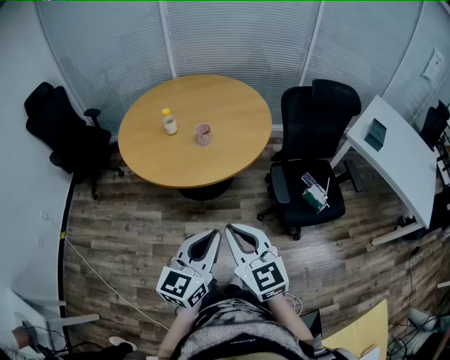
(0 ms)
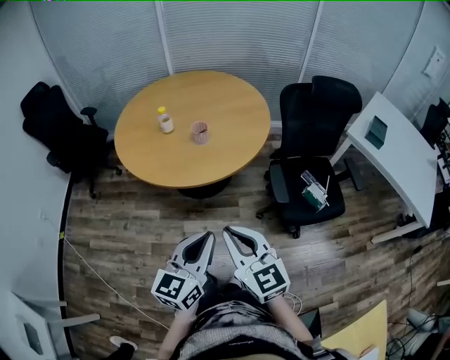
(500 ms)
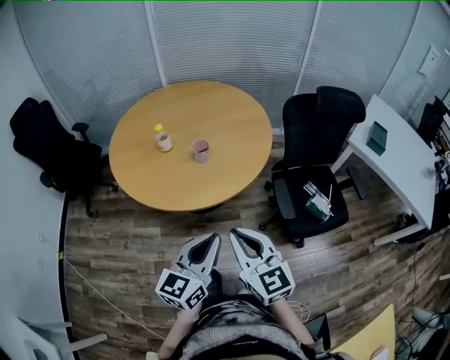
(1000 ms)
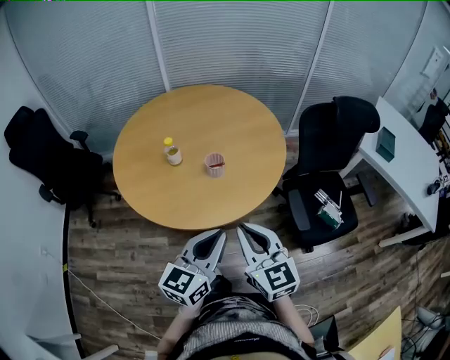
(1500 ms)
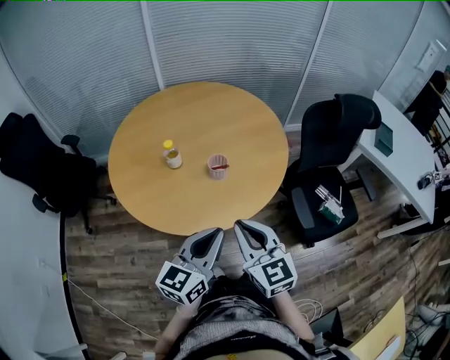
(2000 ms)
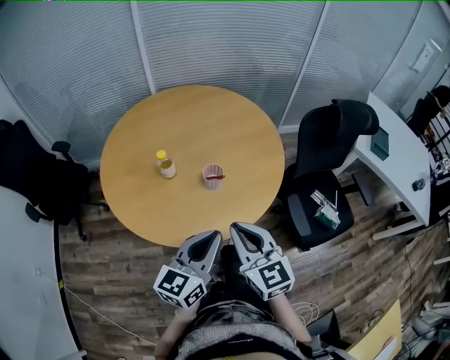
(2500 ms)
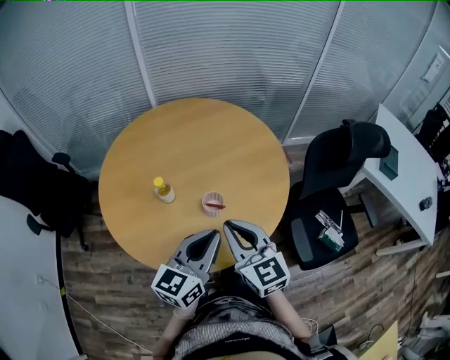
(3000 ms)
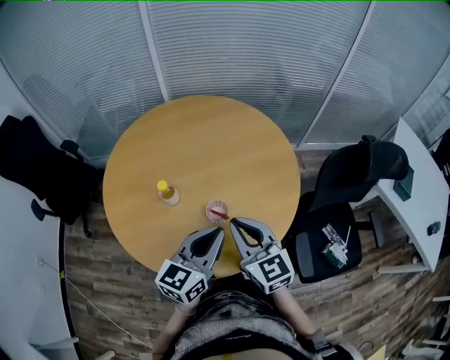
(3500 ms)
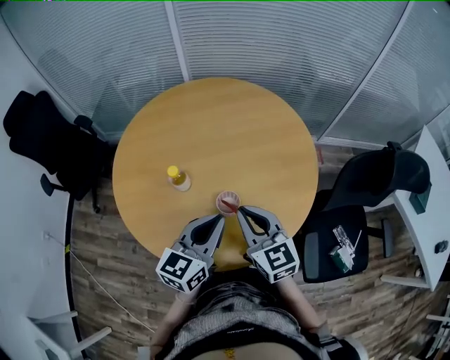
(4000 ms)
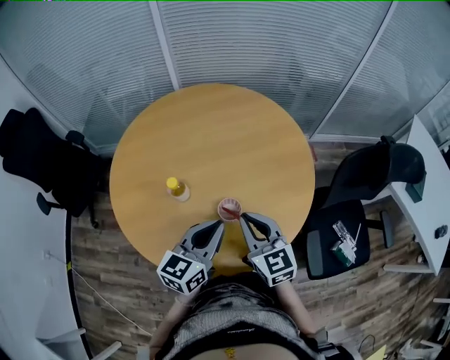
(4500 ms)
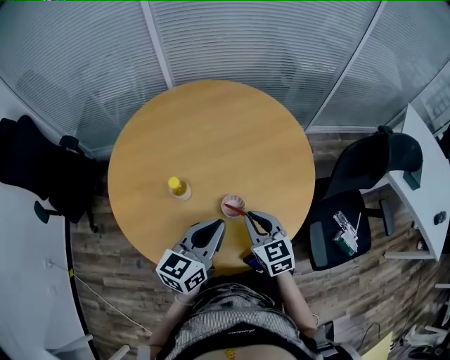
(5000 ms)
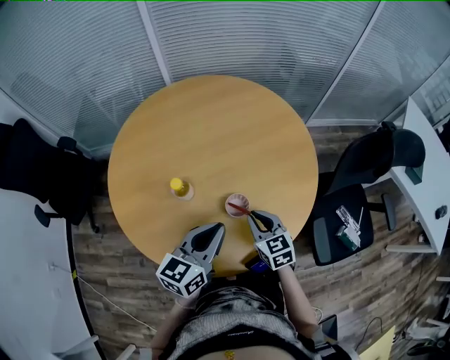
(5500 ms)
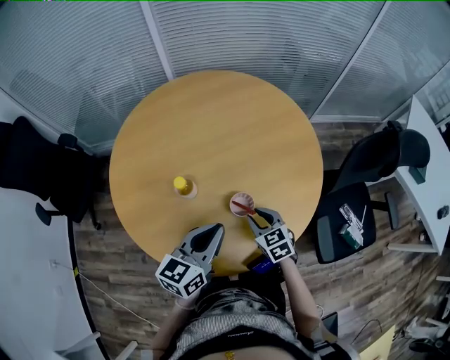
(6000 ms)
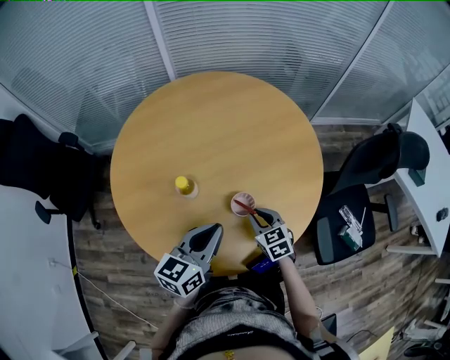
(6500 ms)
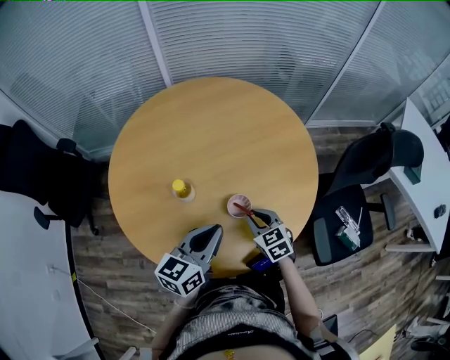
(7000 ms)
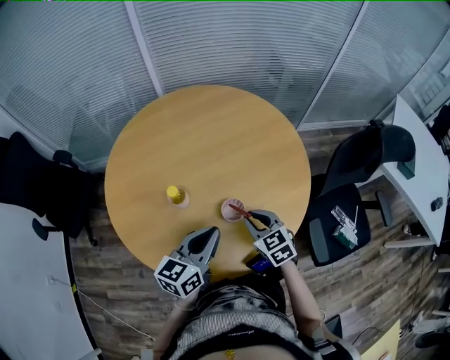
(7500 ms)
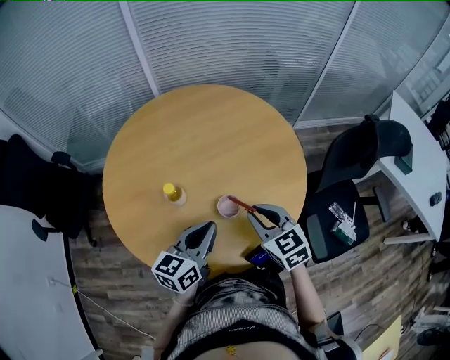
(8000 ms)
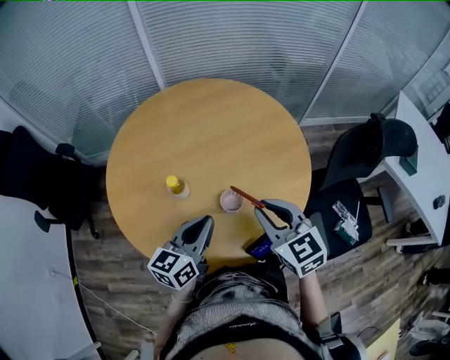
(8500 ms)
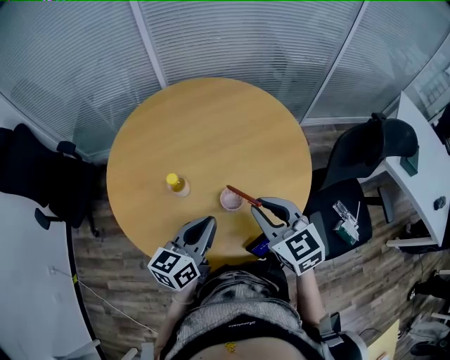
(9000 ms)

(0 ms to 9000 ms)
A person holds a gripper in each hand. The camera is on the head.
0 ms - 2000 ms: Both grippers move forward and to the left, about 30 cm.
2000 ms - 4500 ms: The grippers both shift forward by about 25 cm.
4500 ms - 7000 ms: The left gripper travels to the left by about 5 cm. Meanwhile the right gripper travels downward by approximately 15 cm, and turns by roughly 20 degrees.
7000 ms - 9000 ms: The right gripper goes roughly 20 cm upward.

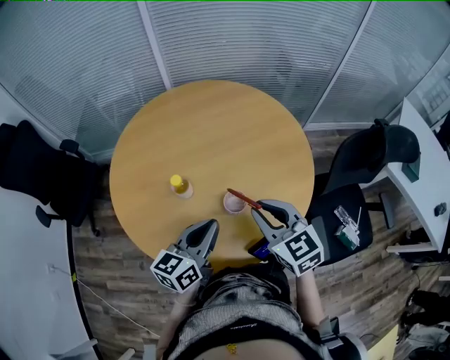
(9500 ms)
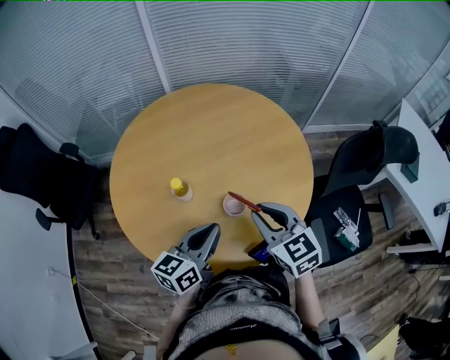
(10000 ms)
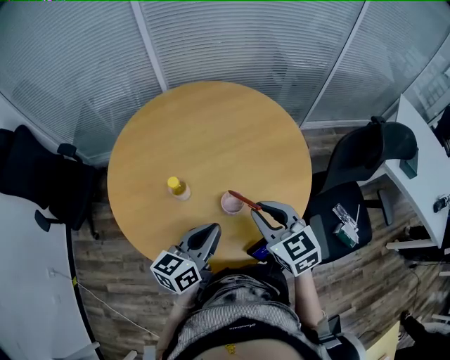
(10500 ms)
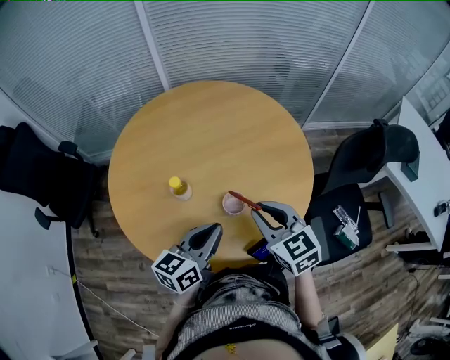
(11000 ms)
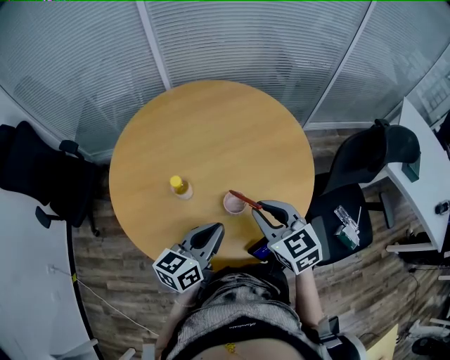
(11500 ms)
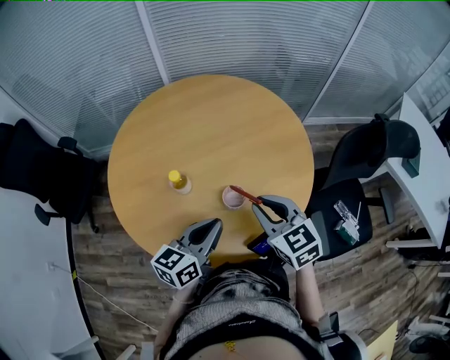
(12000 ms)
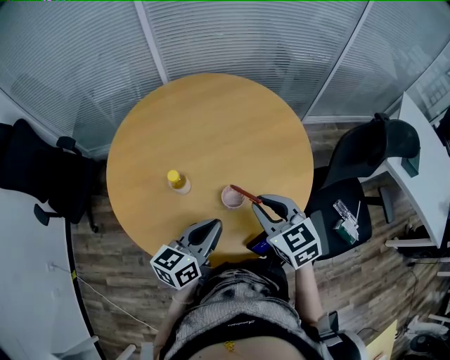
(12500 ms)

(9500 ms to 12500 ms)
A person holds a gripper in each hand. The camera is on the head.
9500 ms - 12500 ms: There are only small adjustments of the grippers.

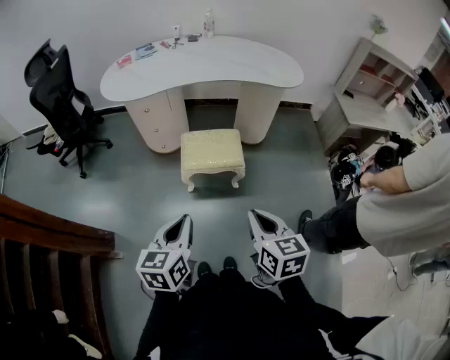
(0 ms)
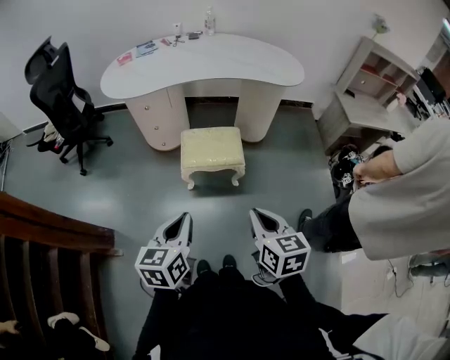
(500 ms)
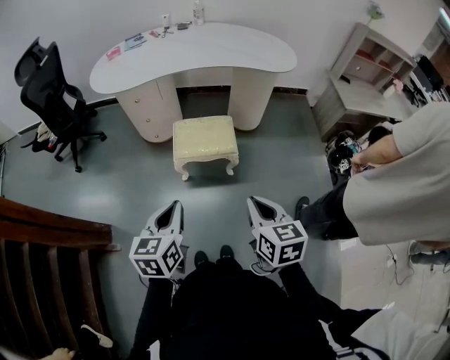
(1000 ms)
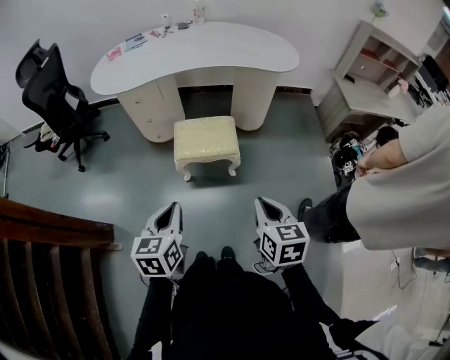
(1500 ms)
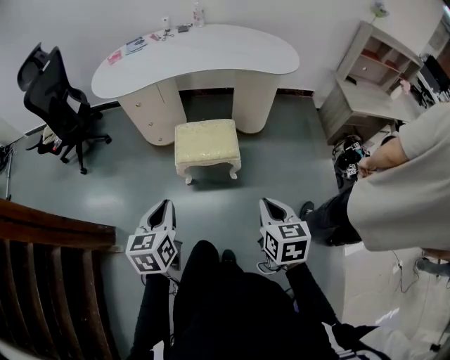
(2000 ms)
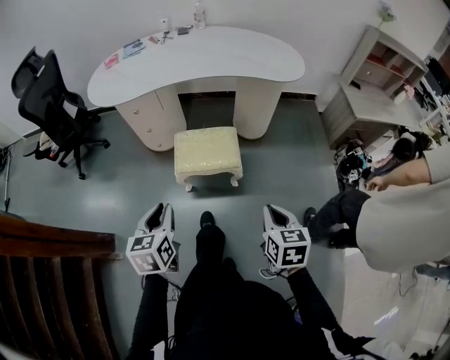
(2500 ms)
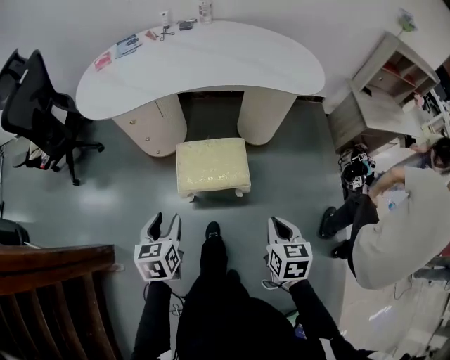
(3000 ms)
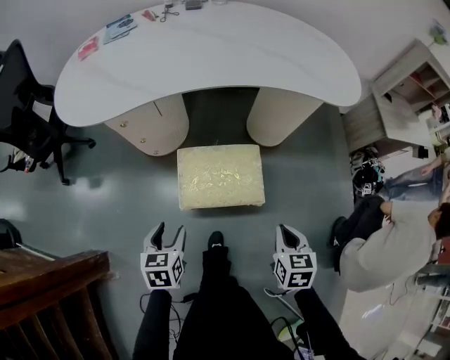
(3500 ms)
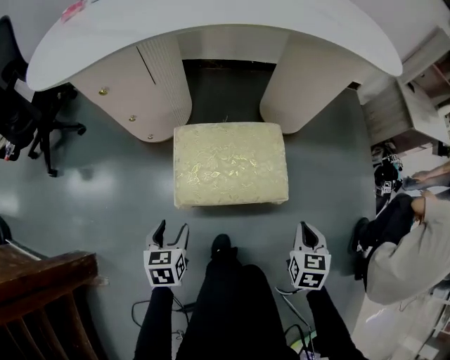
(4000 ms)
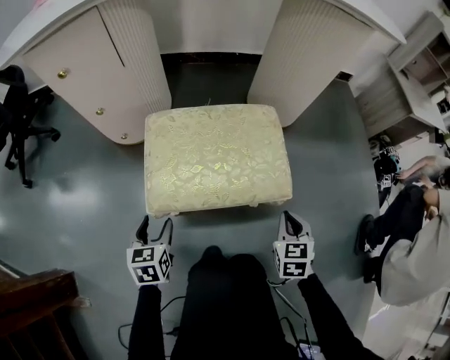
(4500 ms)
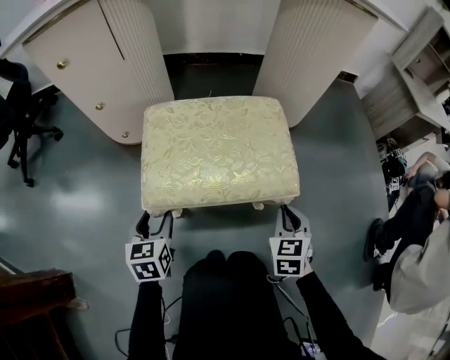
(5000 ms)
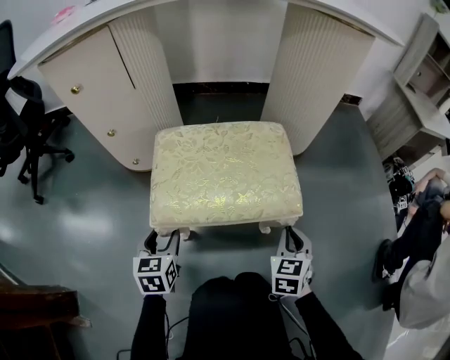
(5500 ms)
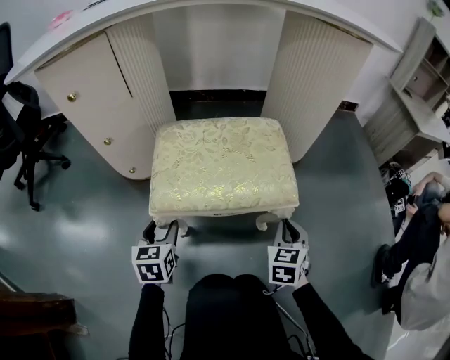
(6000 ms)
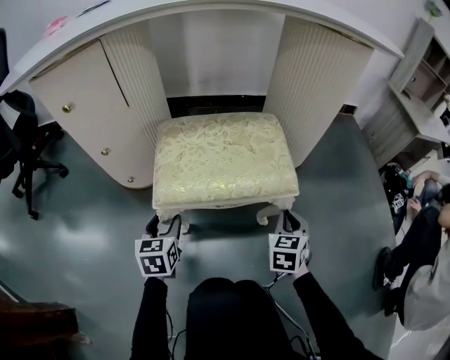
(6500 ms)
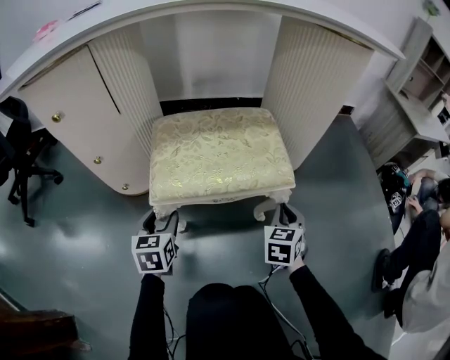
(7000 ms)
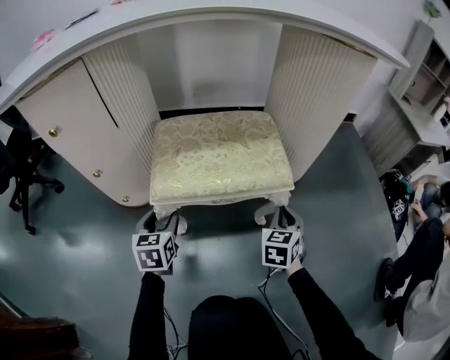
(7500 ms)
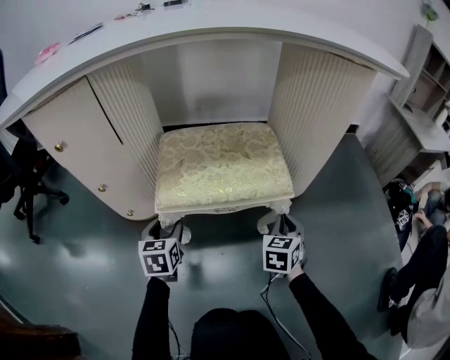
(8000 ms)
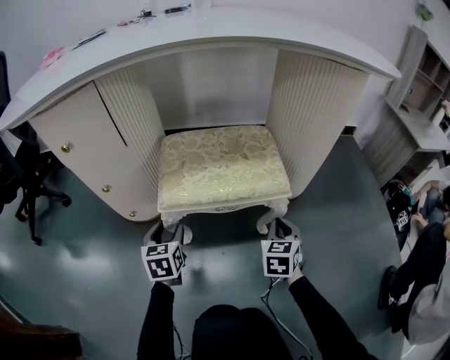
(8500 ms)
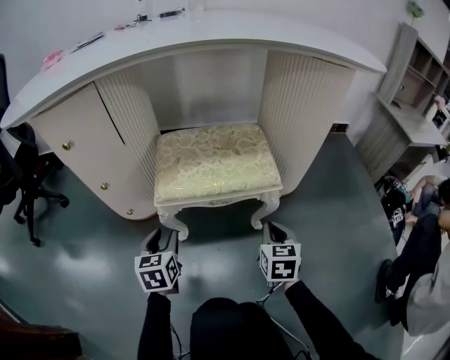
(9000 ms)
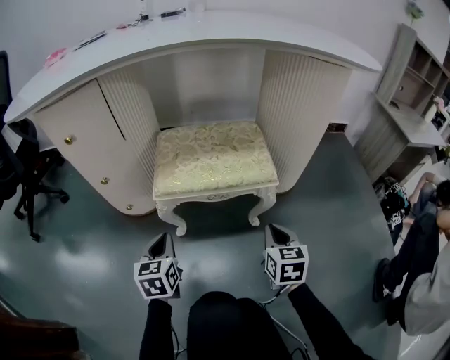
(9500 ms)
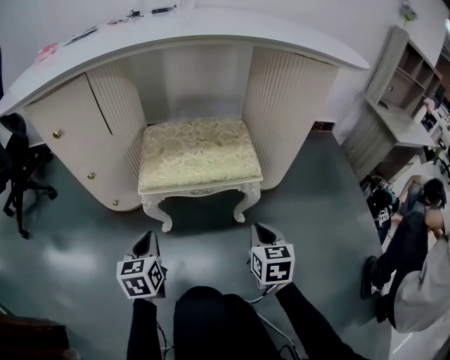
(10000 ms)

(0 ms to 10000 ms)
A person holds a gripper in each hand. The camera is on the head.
0 ms - 2000 ms: The right gripper travels to the right by approximately 10 cm.
2000 ms - 4000 ms: Both grippers move downward and forward, approximately 50 cm. The left gripper opens up. The right gripper swivels about 20 degrees.
4000 ms - 6000 ms: The left gripper shifts roughly 20 cm forward and downward. Meanwhile the right gripper is displaced downward and forward by about 20 cm.
6000 ms - 8000 ms: The grippers both shift forward by roughly 15 cm.
8000 ms - 10000 ms: The grippers both shift backward by some 10 cm. The left gripper closes its fingers; the right gripper swivels approximately 20 degrees.

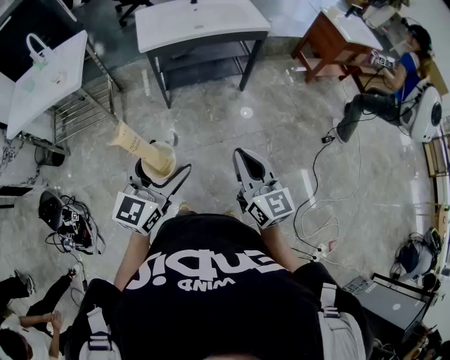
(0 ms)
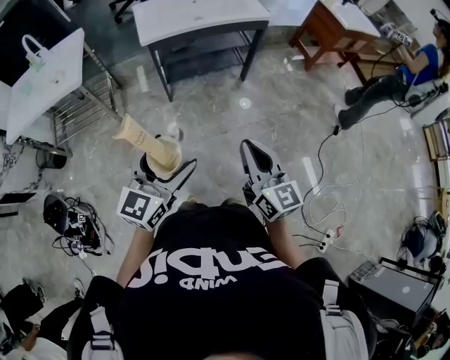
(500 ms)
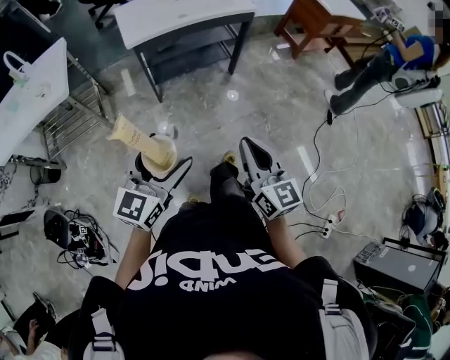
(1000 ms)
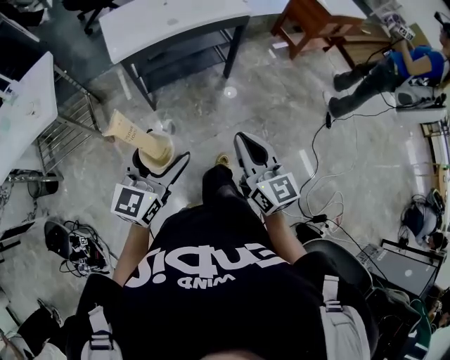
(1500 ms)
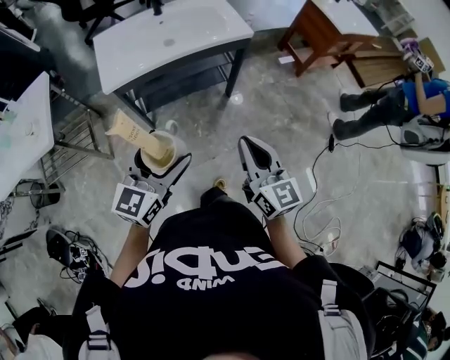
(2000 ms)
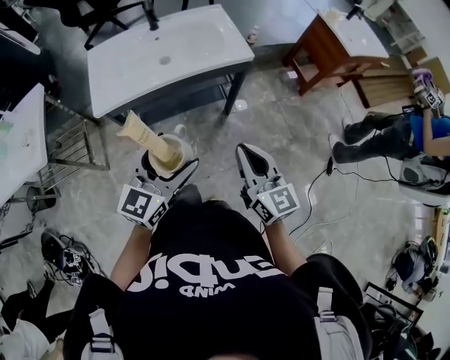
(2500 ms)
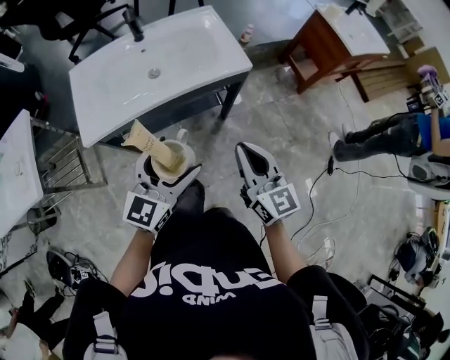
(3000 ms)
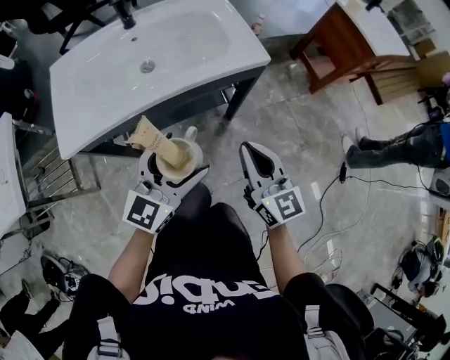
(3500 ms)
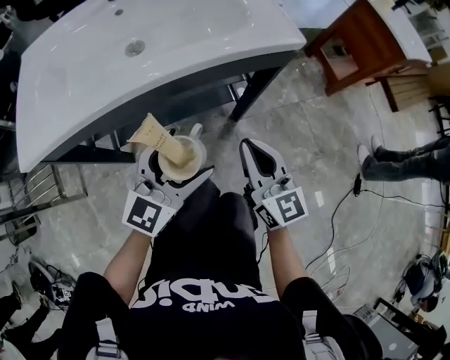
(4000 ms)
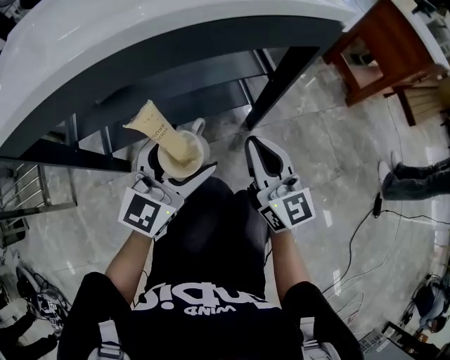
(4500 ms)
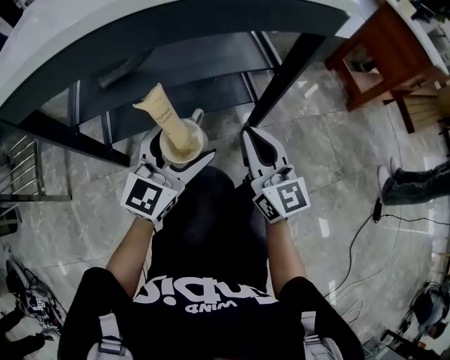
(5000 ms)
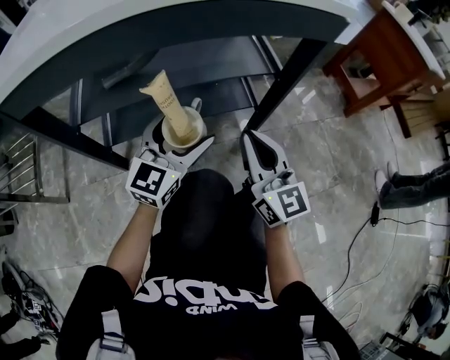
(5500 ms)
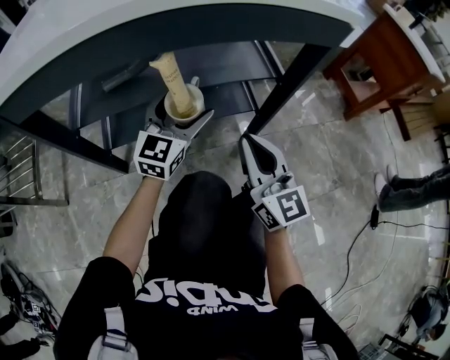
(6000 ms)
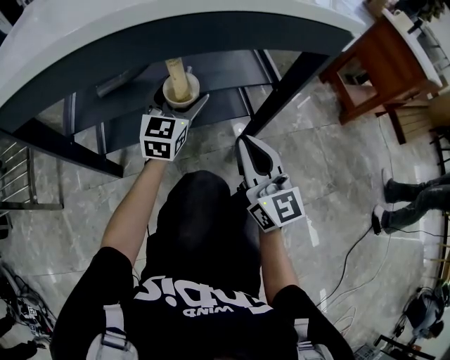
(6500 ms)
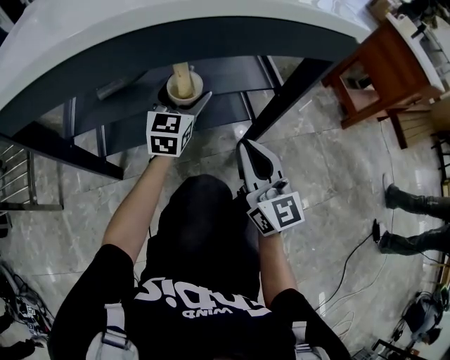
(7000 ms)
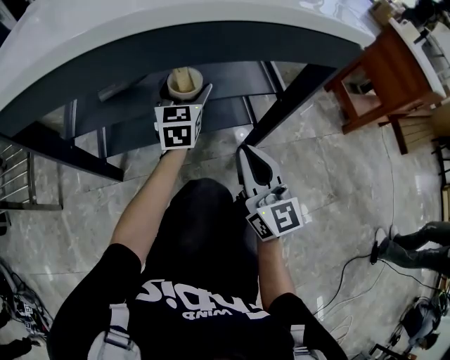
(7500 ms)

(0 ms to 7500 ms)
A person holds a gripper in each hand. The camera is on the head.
0 ms - 2000 ms: The grippers both shift forward by about 25 cm.
2000 ms - 4000 ms: Both grippers move forward and downward, about 50 cm.
4000 ms - 5500 ms: Both grippers move downward, roughly 15 cm.
5500 ms - 7500 ms: The left gripper goes about 20 cm forward, and turns by some 30 degrees.
